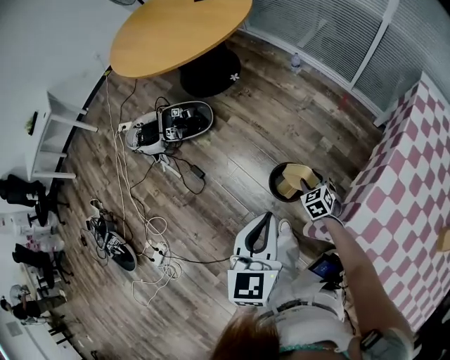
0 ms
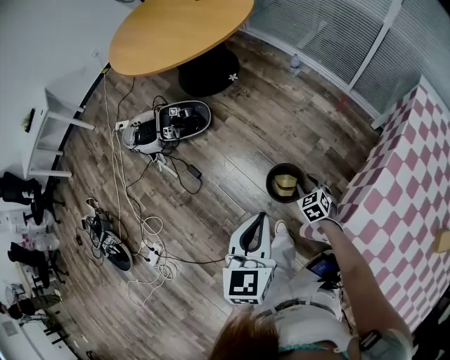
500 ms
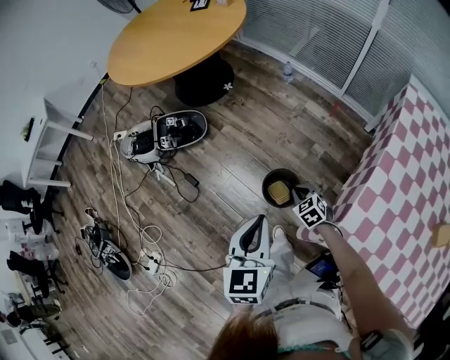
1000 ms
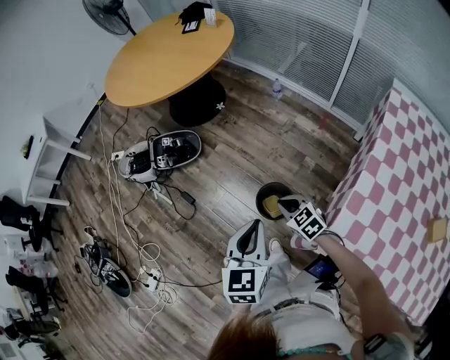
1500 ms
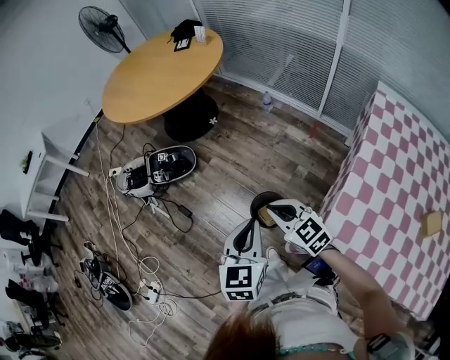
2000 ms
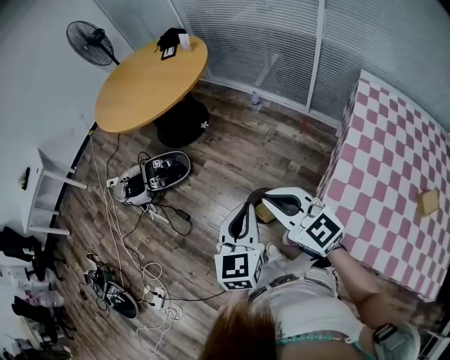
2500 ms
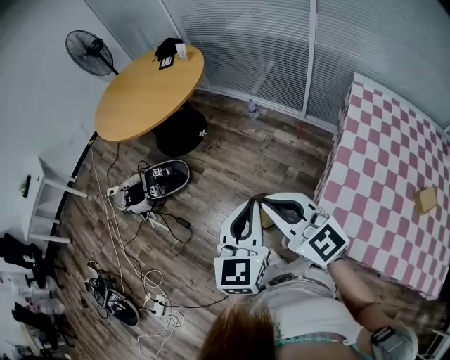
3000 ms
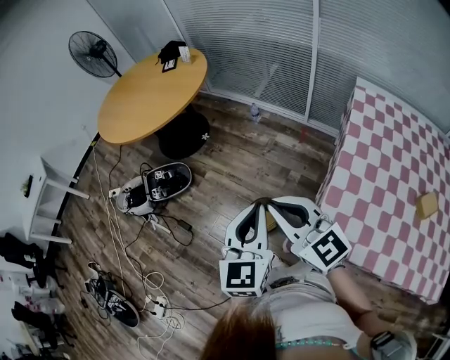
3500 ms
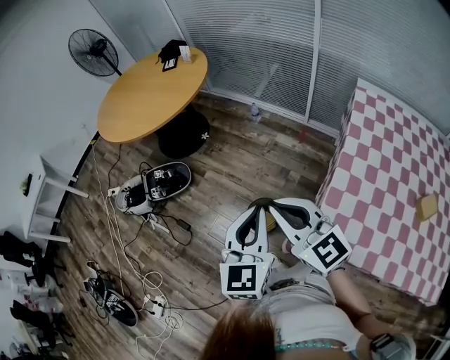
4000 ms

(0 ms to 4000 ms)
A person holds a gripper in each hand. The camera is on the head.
0 ms - 2000 ms: The right gripper shifts about 25 cm upward, rotates some 40 degrees, and closes its fingers.
2000 ms - 4000 ms: The right gripper travels upward by some 20 cm, and swivels approximately 20 degrees, while the left gripper goes some 10 cm upward and to the right.

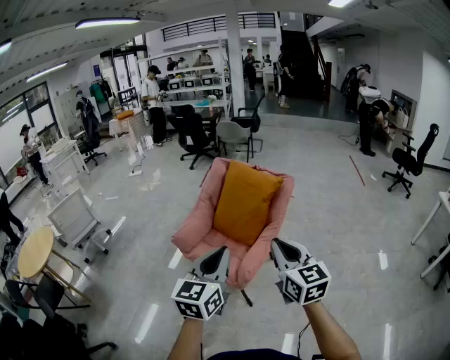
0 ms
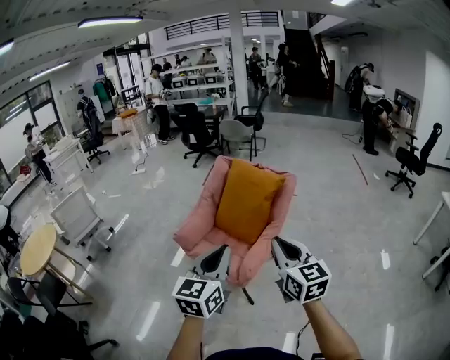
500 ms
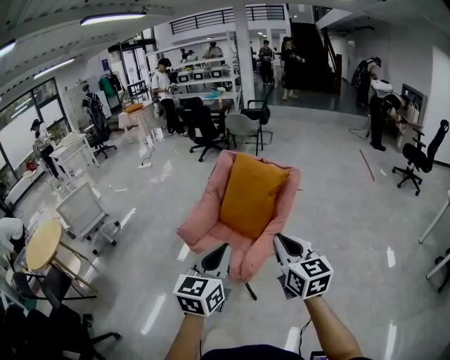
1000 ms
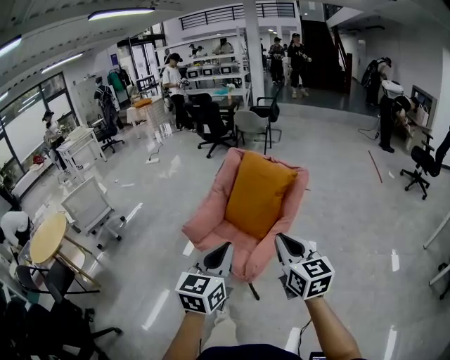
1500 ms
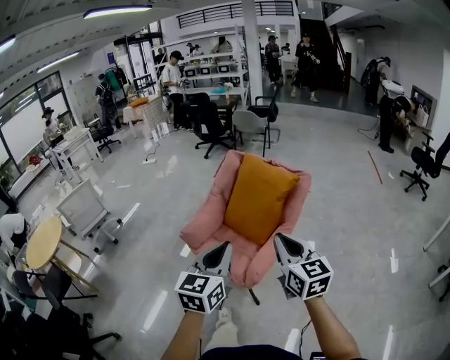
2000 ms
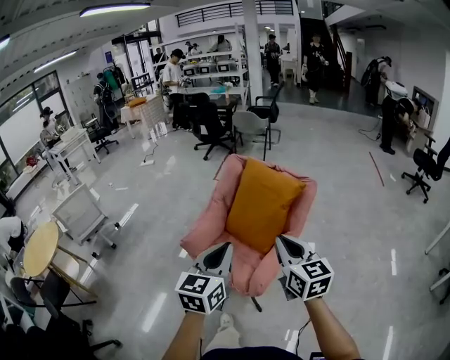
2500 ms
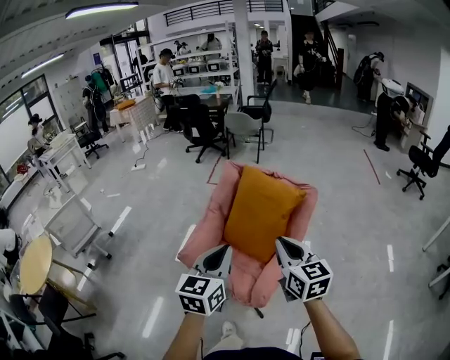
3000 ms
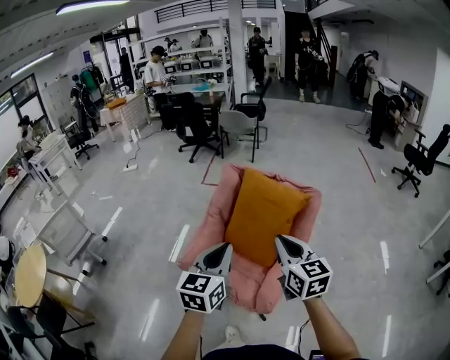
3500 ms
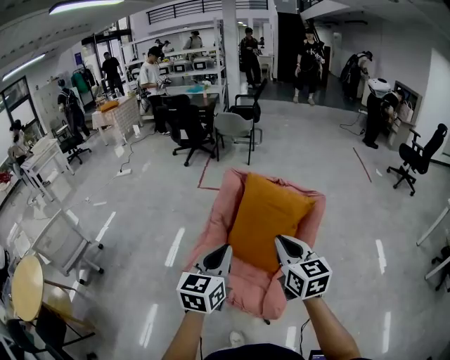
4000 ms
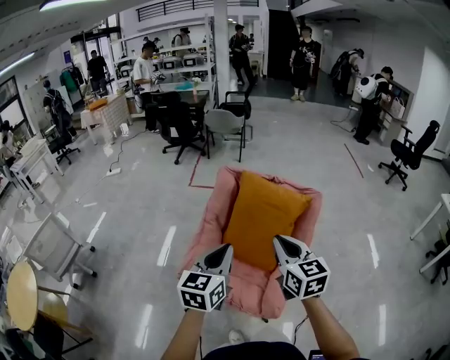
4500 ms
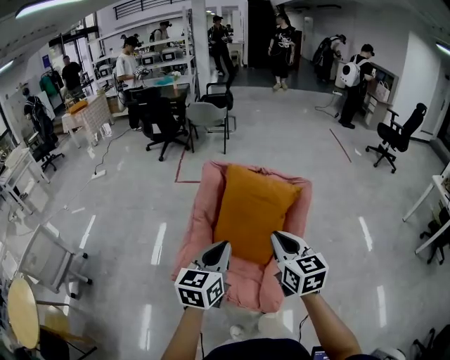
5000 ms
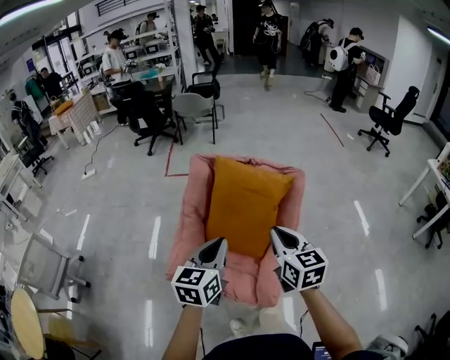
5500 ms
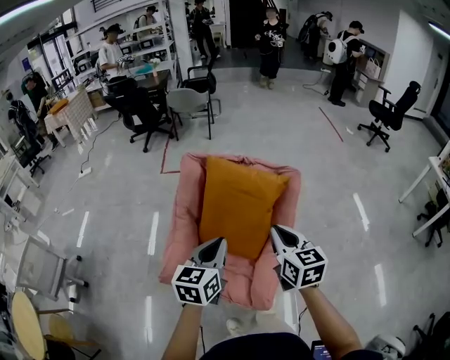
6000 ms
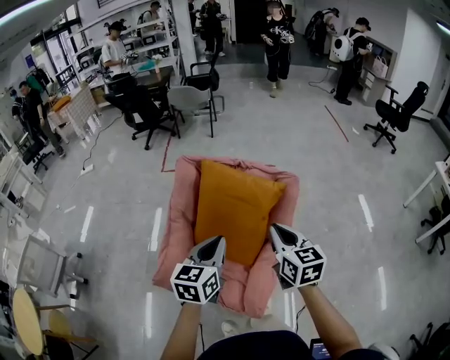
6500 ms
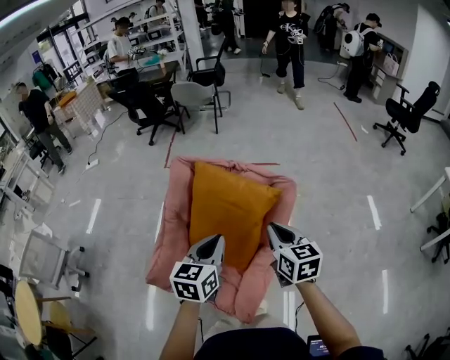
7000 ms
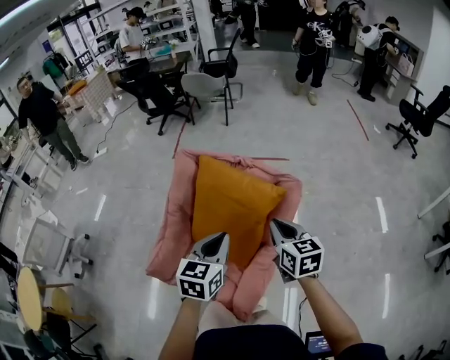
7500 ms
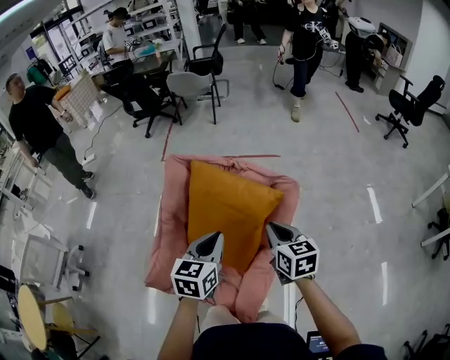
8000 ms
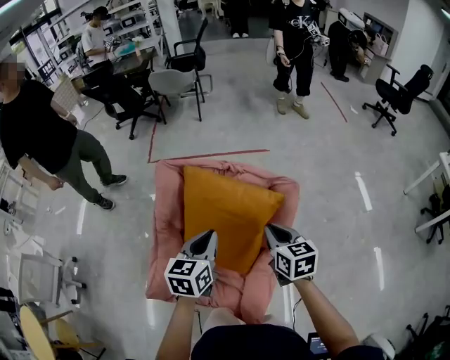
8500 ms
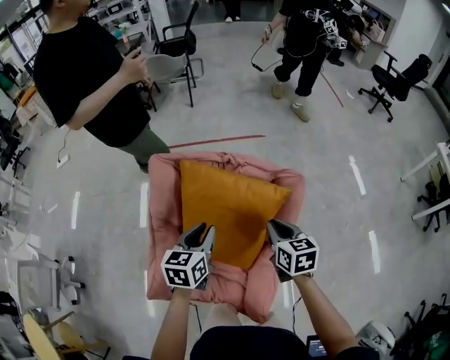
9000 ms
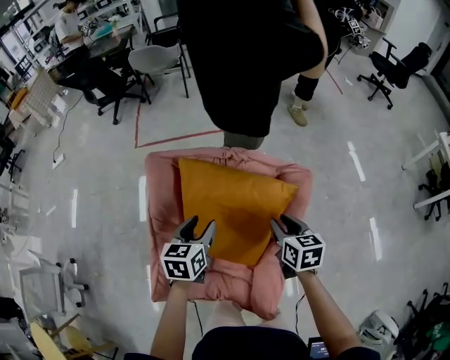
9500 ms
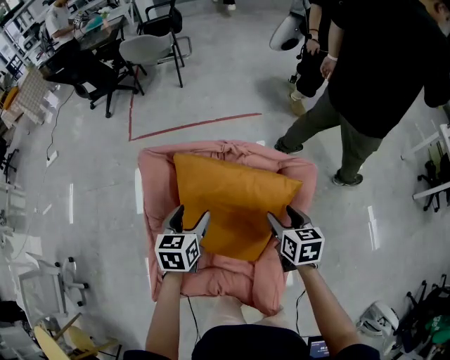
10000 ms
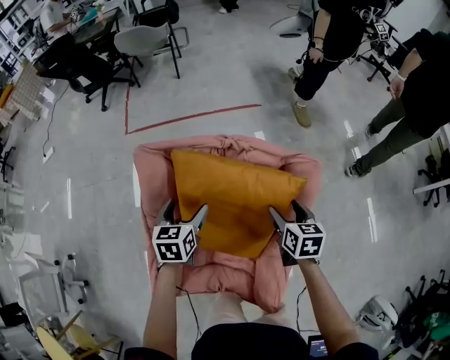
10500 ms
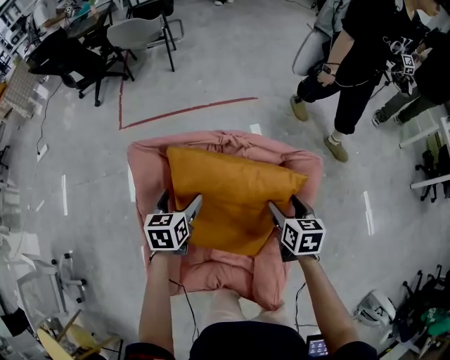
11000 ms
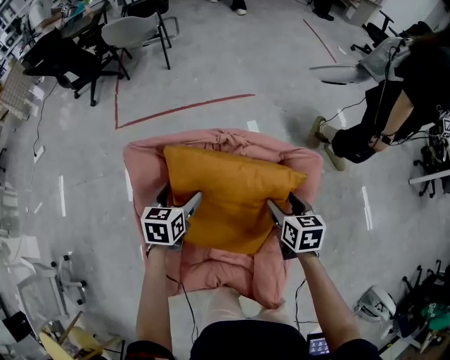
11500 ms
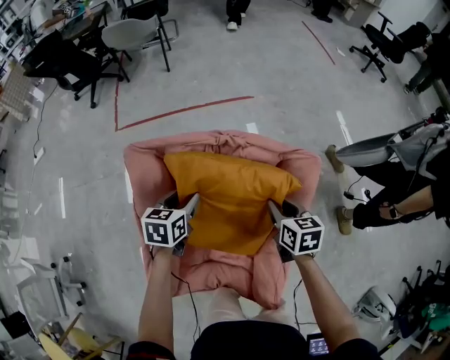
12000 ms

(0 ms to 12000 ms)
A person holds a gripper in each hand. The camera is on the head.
0 ms - 2000 ms: Both grippers move forward, approximately 5 cm.
2000 ms - 4000 ms: The grippers both shift forward and to the left by approximately 25 cm.
4000 ms - 6000 ms: The right gripper travels to the right, forward and downward by some 15 cm; the left gripper moves forward, downward and to the right, some 15 cm.
6000 ms - 8000 ms: The left gripper is displaced forward and to the right by approximately 15 cm. Meanwhile the right gripper travels forward, to the right and downward by about 20 cm.
8000 ms - 10000 ms: The right gripper goes approximately 15 cm downward and forward, turns by about 20 degrees, and opens up. The left gripper goes some 25 cm forward, downward and to the left, and opens.
10000 ms - 12000 ms: The right gripper shifts by approximately 5 cm, and closes up. Meanwhile the left gripper goes roughly 10 cm forward and downward.

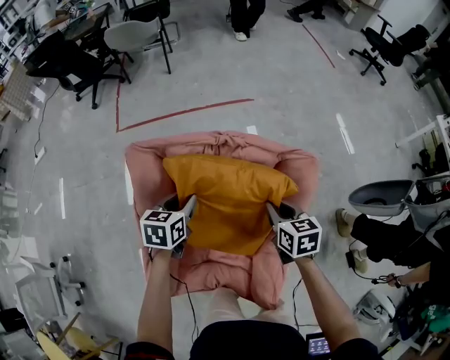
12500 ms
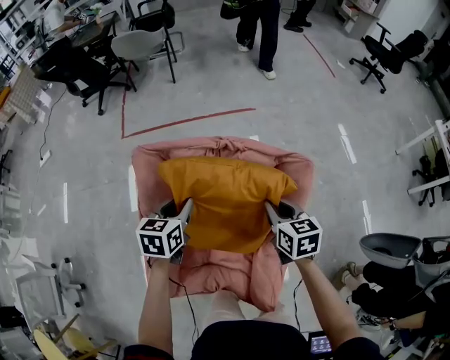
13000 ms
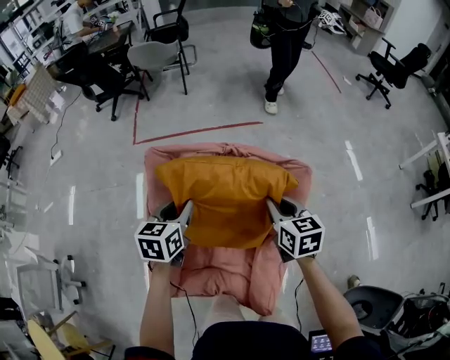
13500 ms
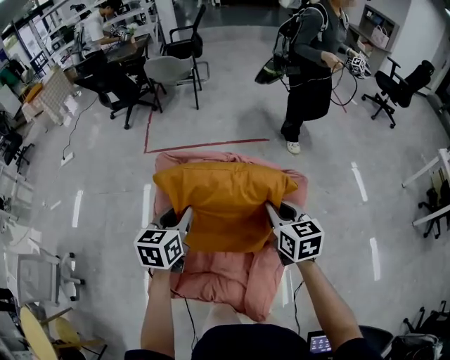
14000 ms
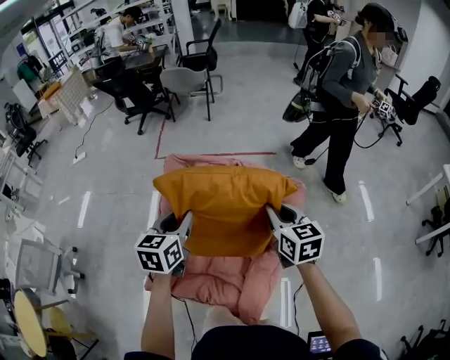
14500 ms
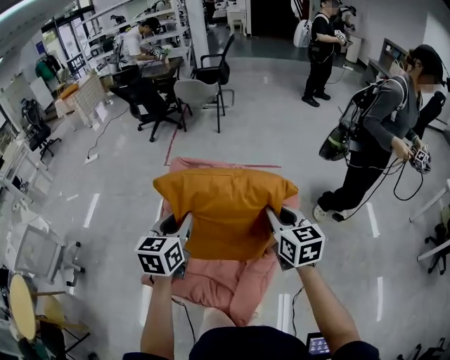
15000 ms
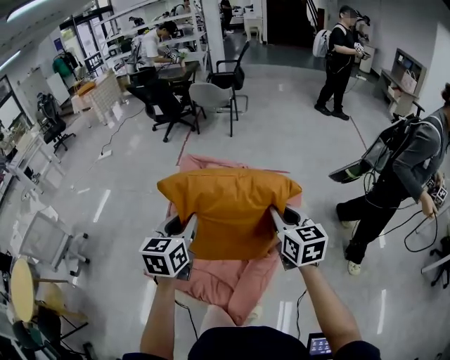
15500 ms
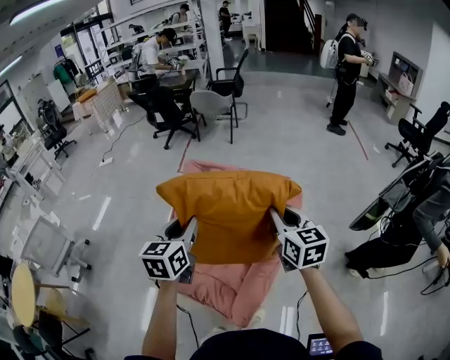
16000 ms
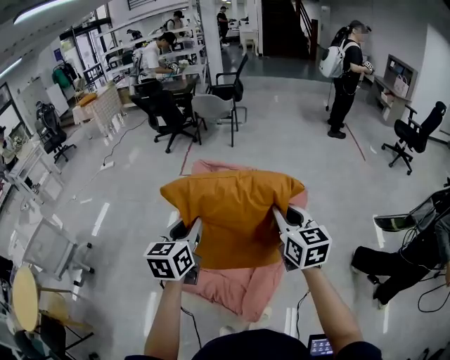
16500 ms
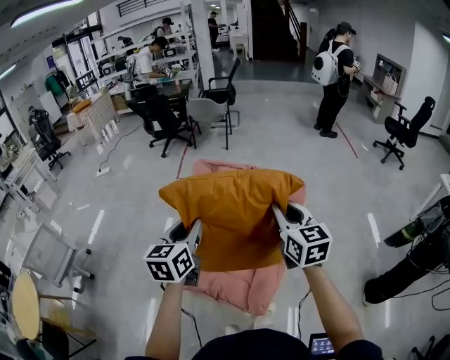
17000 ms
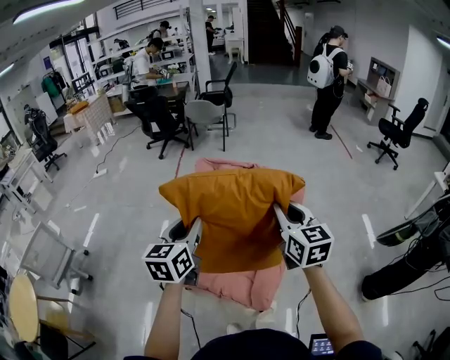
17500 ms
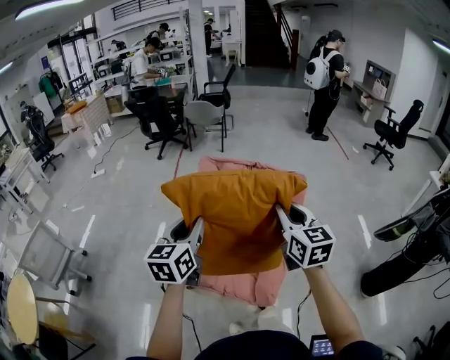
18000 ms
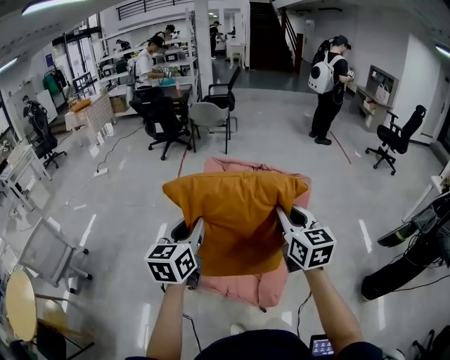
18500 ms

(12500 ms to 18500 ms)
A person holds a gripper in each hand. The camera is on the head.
12500 ms - 14500 ms: The right gripper heads upward, covering approximately 20 cm, and swivels about 20 degrees; the left gripper heads upward and backward, covering roughly 25 cm, and swivels about 30 degrees.
14500 ms - 16500 ms: Both grippers travel together backward and upward, roughly 15 cm.
16500 ms - 18500 ms: The left gripper heads to the left and backward, covering some 15 cm; the right gripper goes some 15 cm backward and to the left.

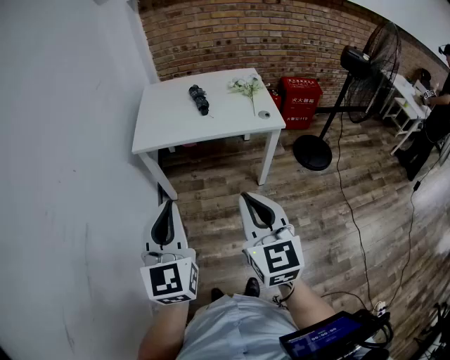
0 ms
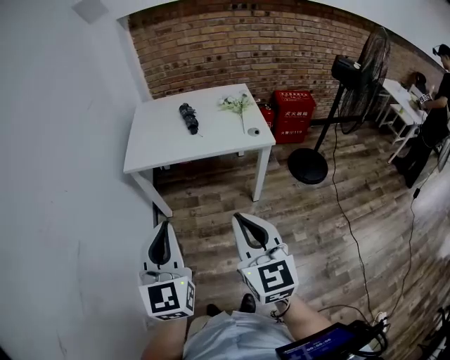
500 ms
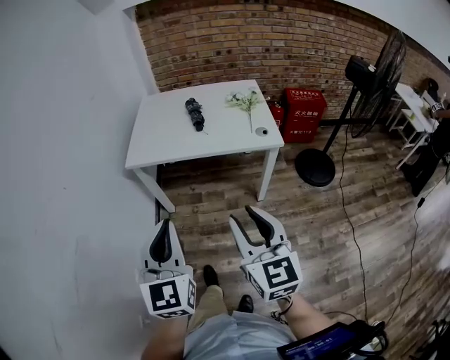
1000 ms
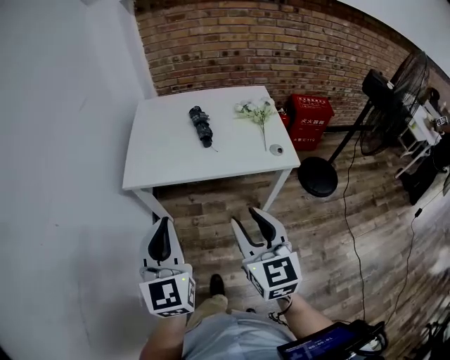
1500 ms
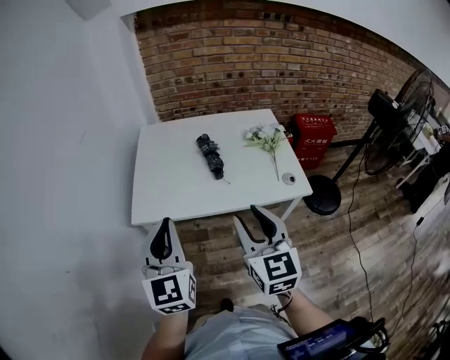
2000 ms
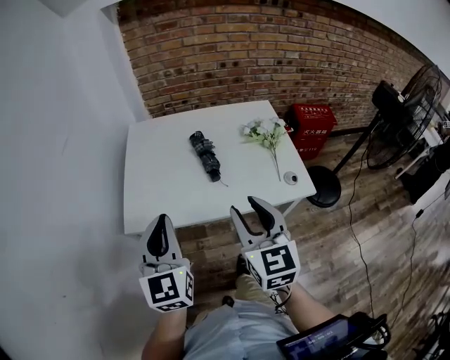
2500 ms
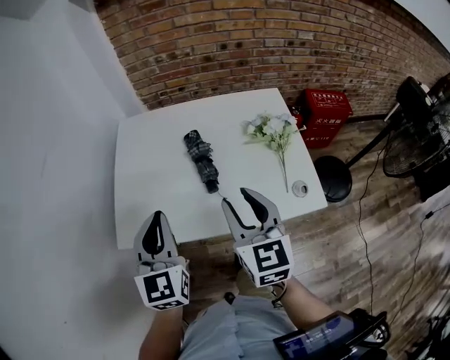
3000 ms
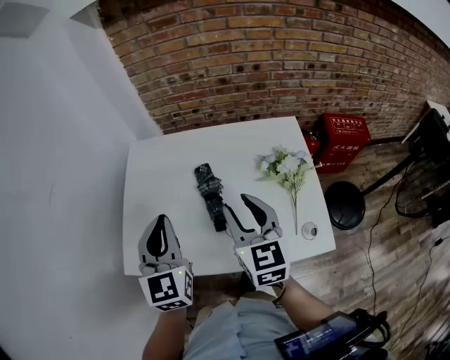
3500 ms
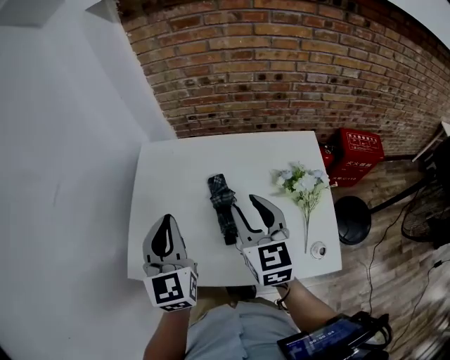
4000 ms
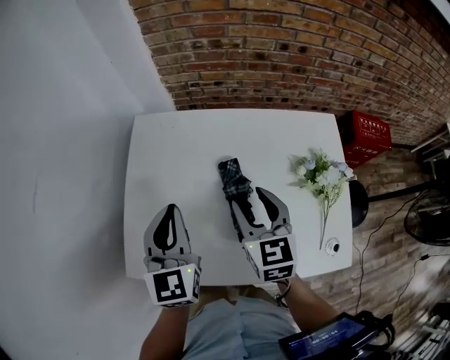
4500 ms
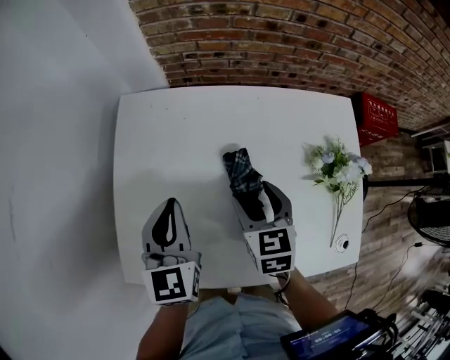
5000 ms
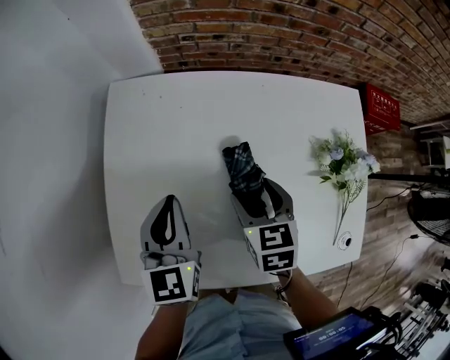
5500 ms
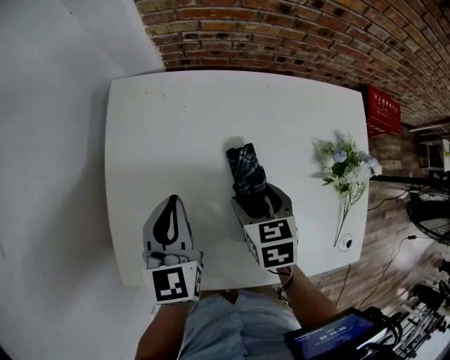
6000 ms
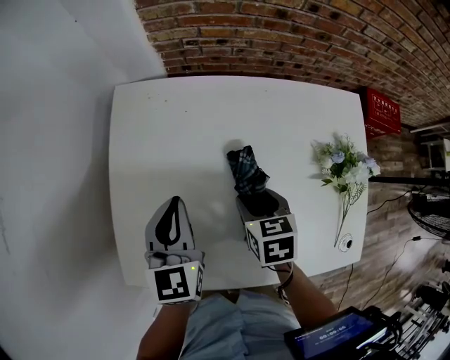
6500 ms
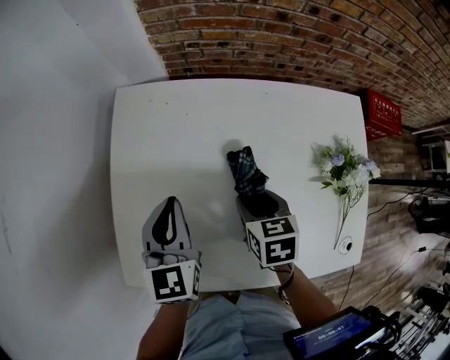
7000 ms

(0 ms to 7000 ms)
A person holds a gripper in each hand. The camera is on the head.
0 ms - 2000 ms: The two grippers go some 30 cm forward. The right gripper opens.
2000 ms - 3500 ms: The grippers both shift forward by approximately 30 cm.
3500 ms - 5000 ms: The left gripper travels forward and downward by roughly 20 cm. The right gripper shifts about 20 cm downward and forward, swivels roughly 30 degrees, and opens.
5000 ms - 7000 ms: The right gripper travels downward by about 5 cm.
